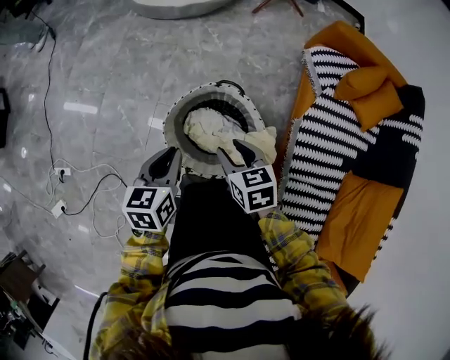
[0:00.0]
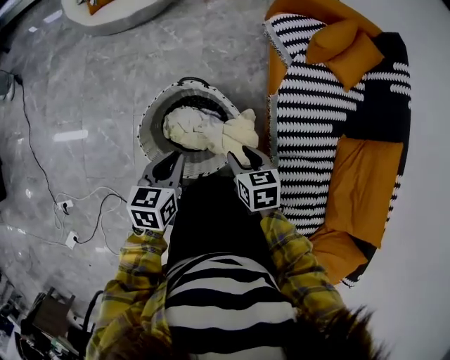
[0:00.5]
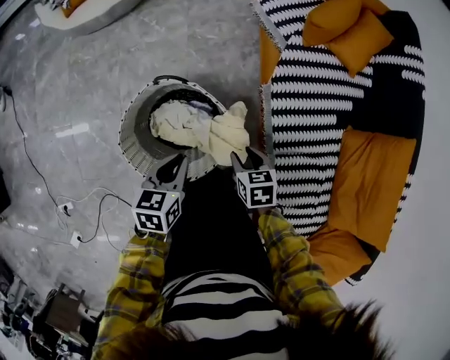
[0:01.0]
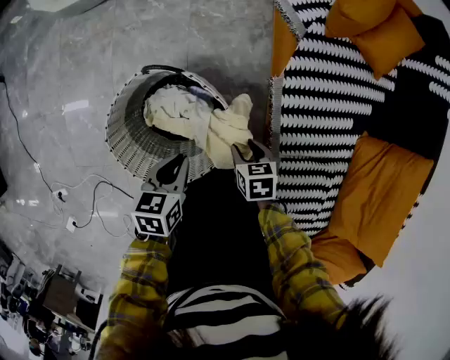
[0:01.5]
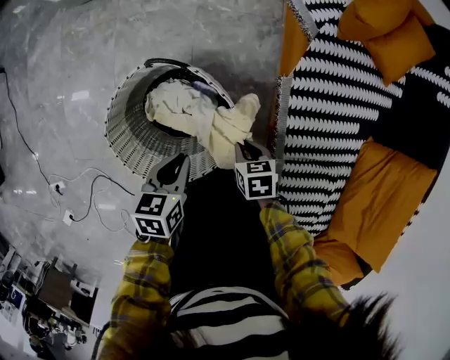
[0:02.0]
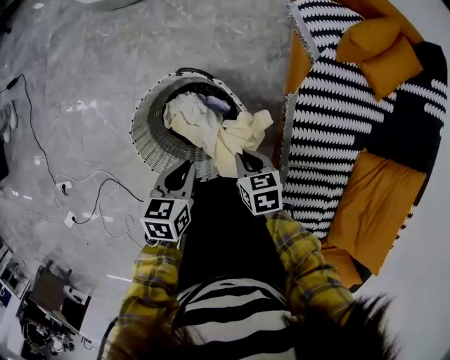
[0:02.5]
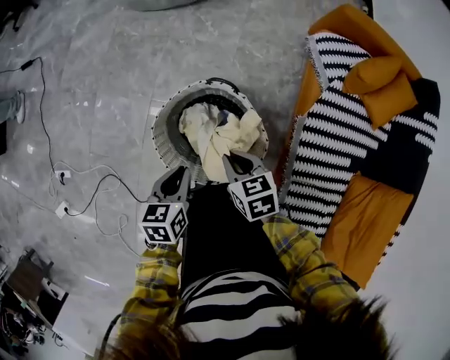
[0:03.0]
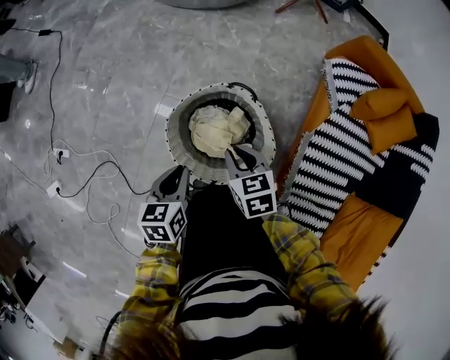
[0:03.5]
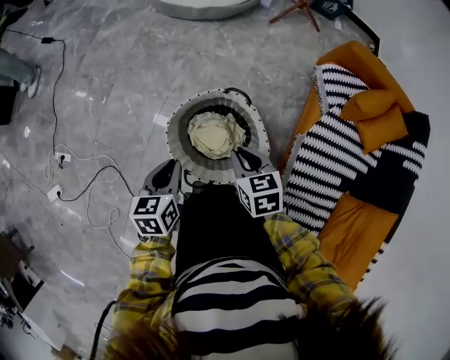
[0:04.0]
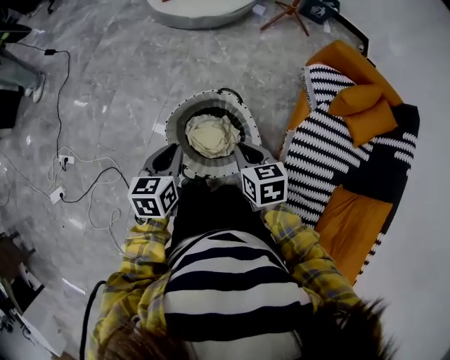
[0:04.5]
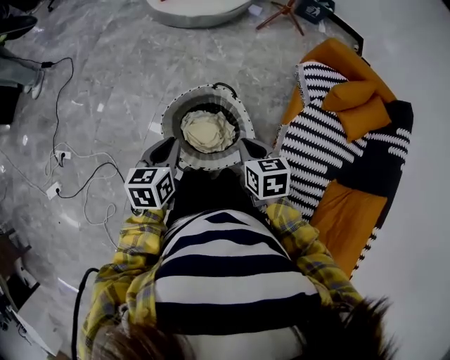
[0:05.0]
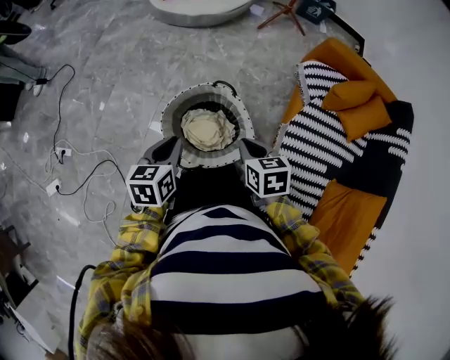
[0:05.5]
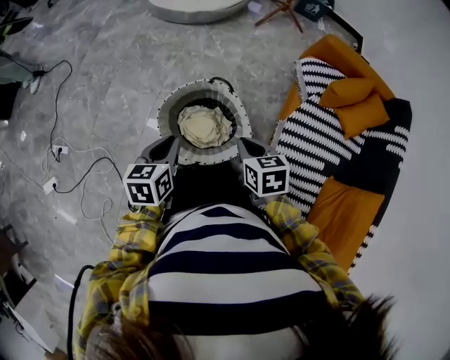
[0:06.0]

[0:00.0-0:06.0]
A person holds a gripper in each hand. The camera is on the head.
0:00.0 to 0:02.0: Both grippers travel together downward and to the right, approximately 30 cm. The right gripper swivels some 30 degrees, and closes. Meanwhile the left gripper rotates roughly 30 degrees.
0:02.0 to 0:04.0: The right gripper shifts some 30 cm upward and to the left, and swivels approximately 30 degrees. The left gripper travels to the left and upward by roughly 25 cm, and changes its angle by approximately 30 degrees.
0:04.0 to 0:06.0: The left gripper moves upward, roughly 5 cm. Meanwhile the right gripper heads to the right, upward and backward, covering about 10 cm.

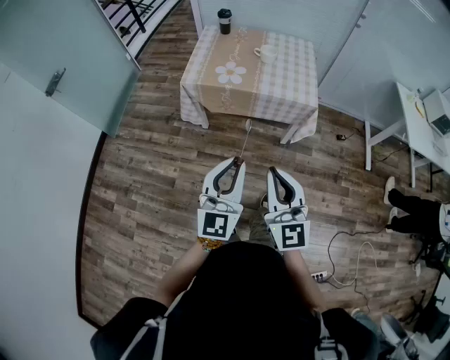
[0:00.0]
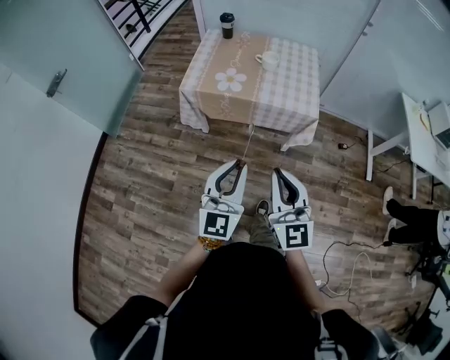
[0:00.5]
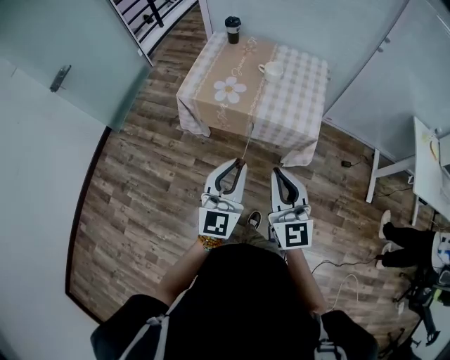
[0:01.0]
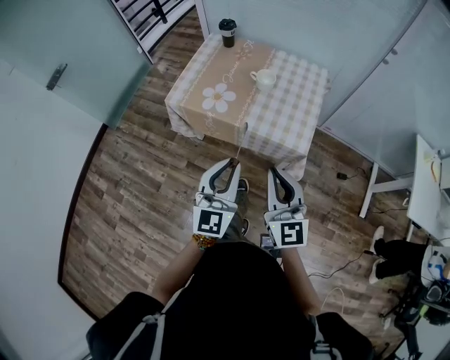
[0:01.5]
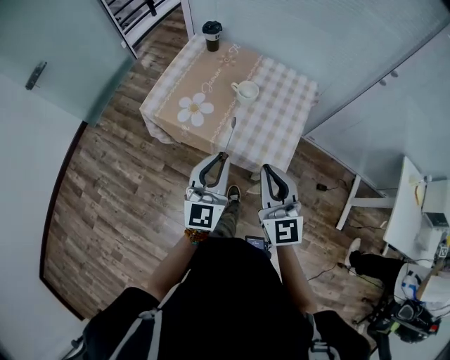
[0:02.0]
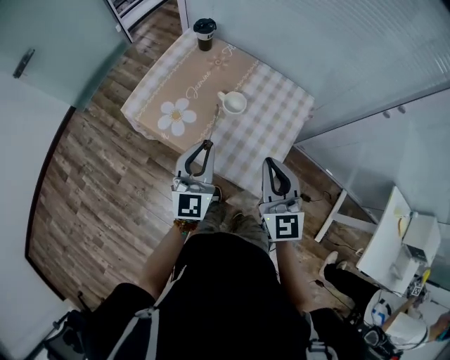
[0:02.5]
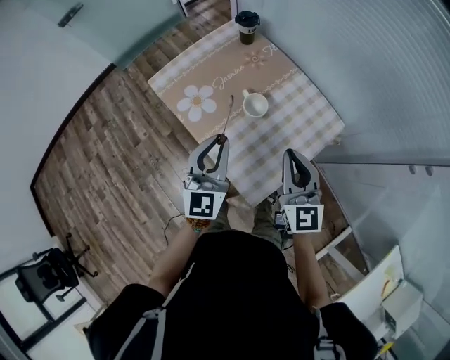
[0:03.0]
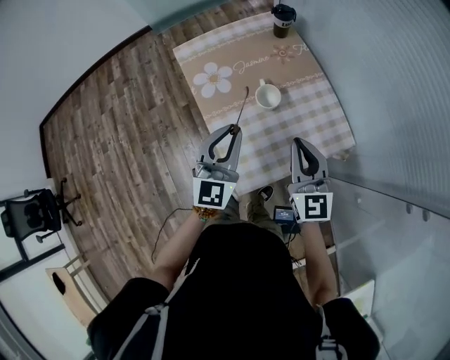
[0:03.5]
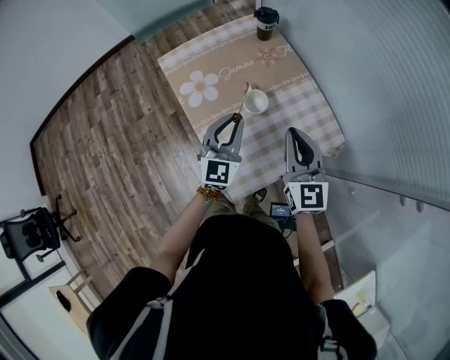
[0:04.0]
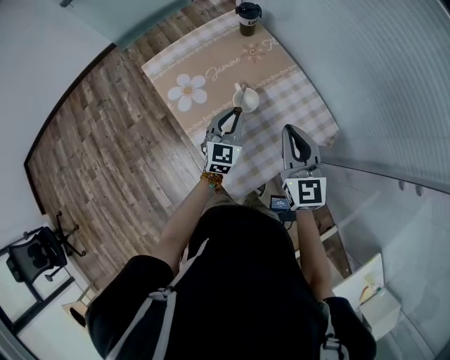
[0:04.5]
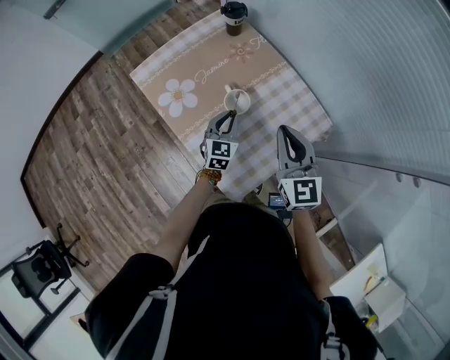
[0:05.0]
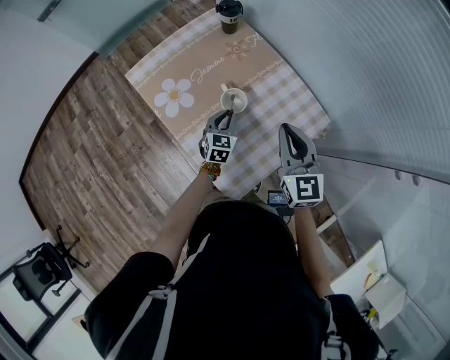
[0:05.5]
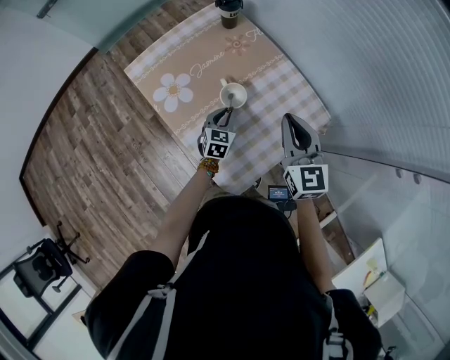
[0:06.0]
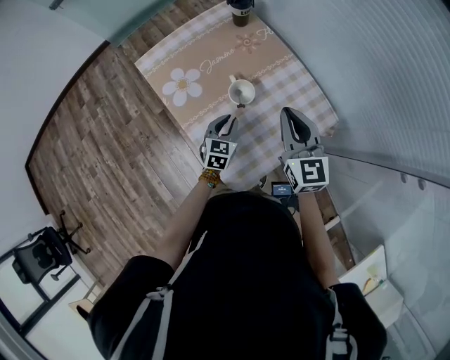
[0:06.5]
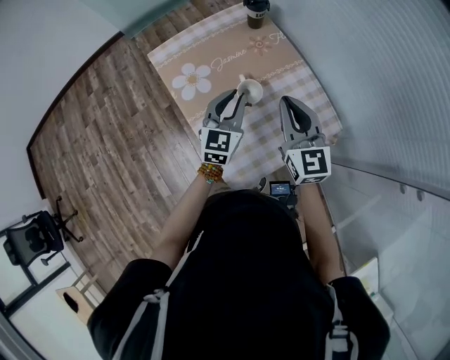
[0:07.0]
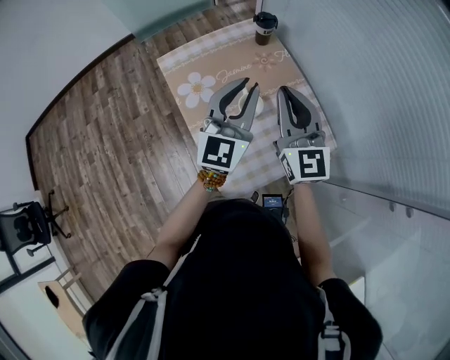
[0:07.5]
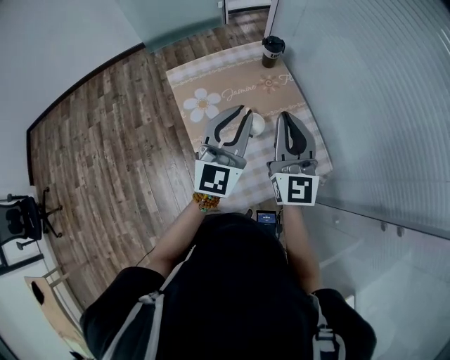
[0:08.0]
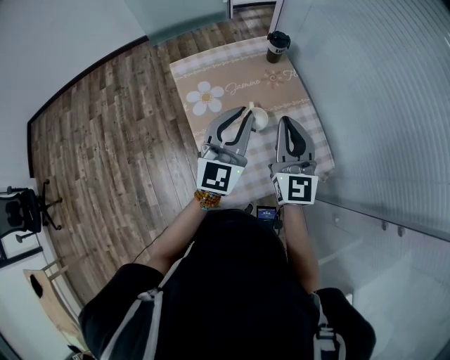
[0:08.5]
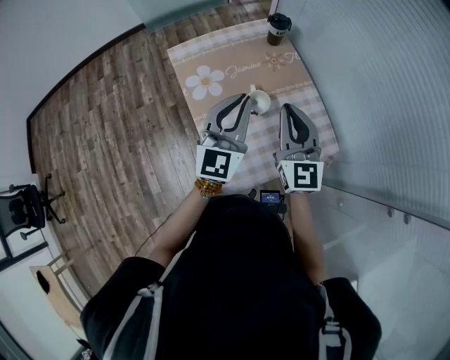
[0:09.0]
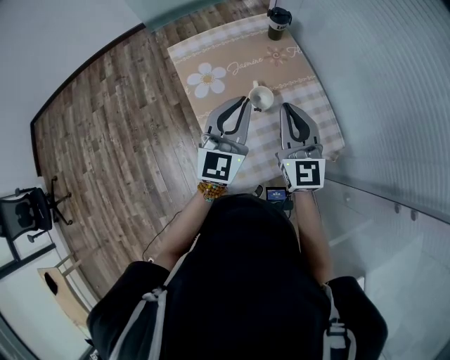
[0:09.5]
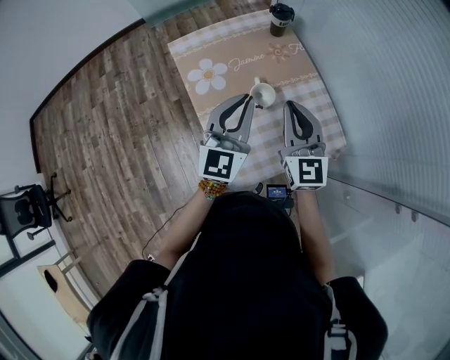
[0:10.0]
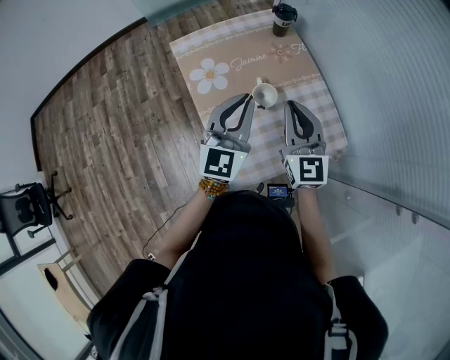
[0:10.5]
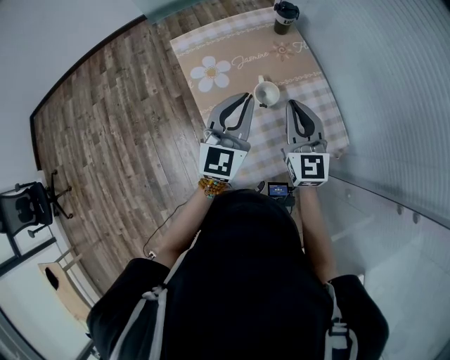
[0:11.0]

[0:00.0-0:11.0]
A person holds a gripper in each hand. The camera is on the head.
0:00.0 to 0:02.0: The pair of grippers is taken forward and to the right, about 40 cm.
0:02.0 to 0:03.5: The right gripper ends up approximately 35 cm from where it was, and turns by about 40 degrees, while the left gripper changes place by about 25 cm, and rotates about 40 degrees.
0:03.5 to 0:05.5: The left gripper is displaced downward and forward by some 30 cm, and turns by about 30 degrees; the right gripper travels forward by about 5 cm.
0:05.5 to 0:07.5: The left gripper heads upward, covering roughly 35 cm, and tips its fingers upward by approximately 40 degrees, while the right gripper shifts approximately 15 cm upward and to the left, and rotates about 20 degrees.
0:07.5 to 0:09.0: The right gripper changes place by approximately 5 cm; the left gripper ends up roughly 5 cm from where it was.
0:09.0 to 0:11.0: The right gripper goes roughly 5 cm downward.

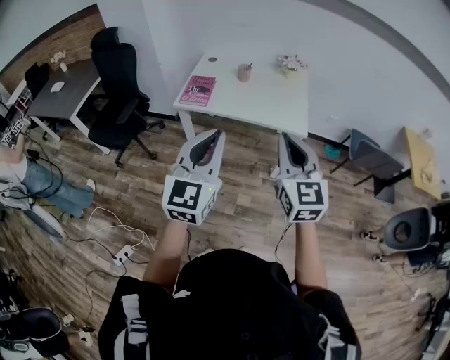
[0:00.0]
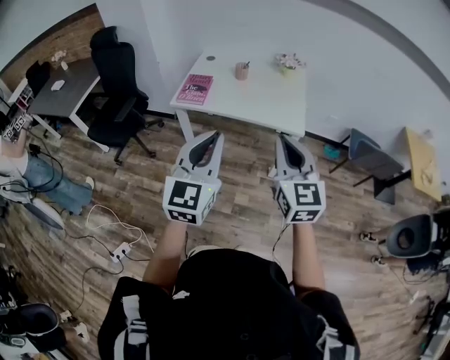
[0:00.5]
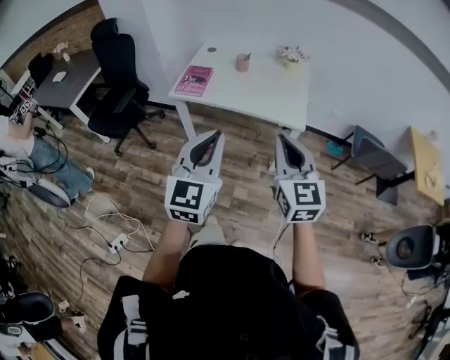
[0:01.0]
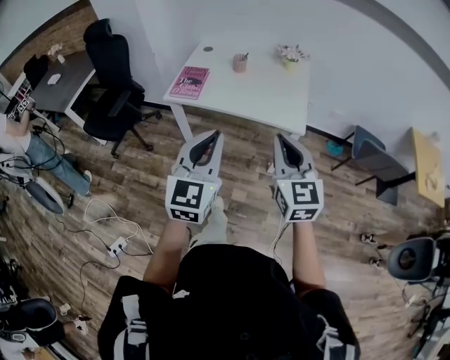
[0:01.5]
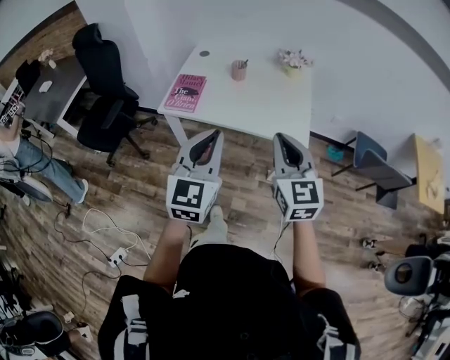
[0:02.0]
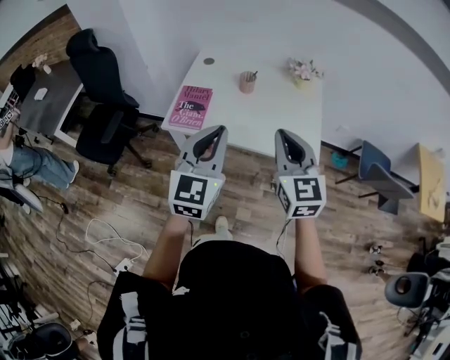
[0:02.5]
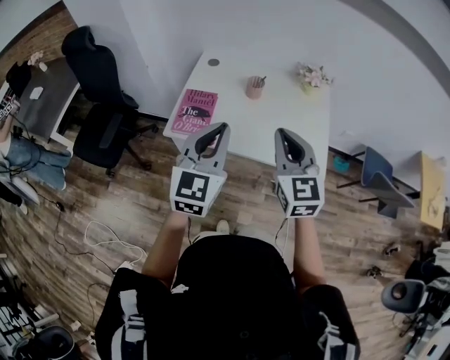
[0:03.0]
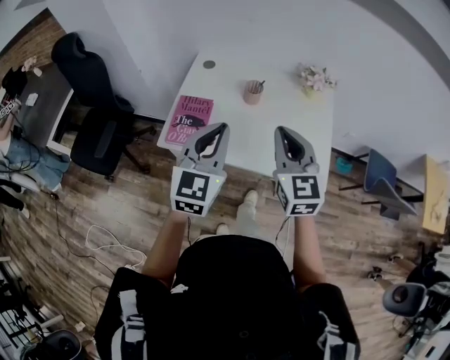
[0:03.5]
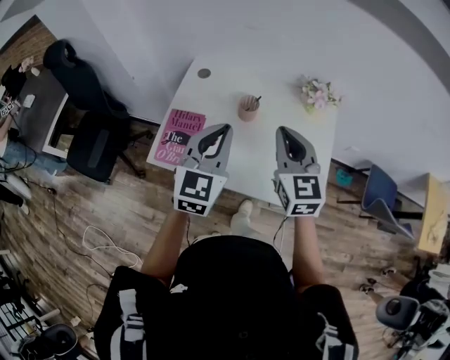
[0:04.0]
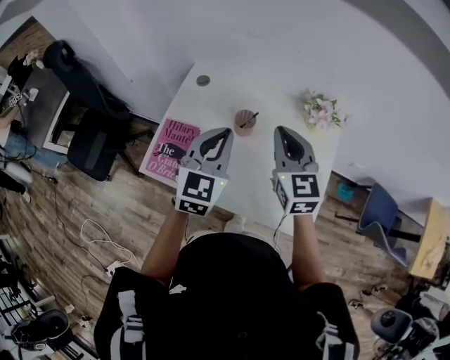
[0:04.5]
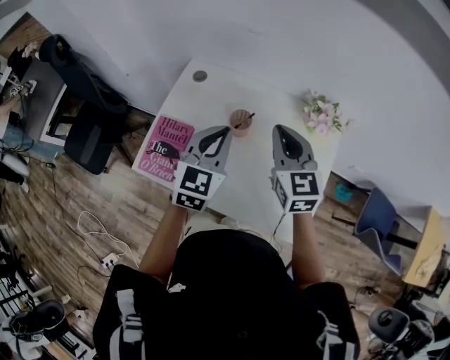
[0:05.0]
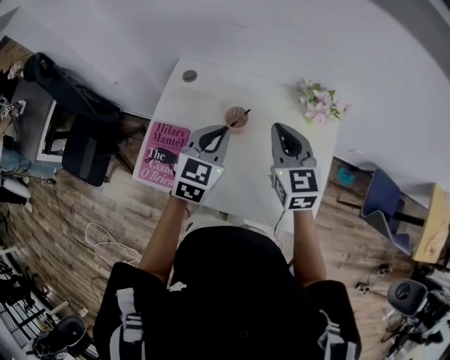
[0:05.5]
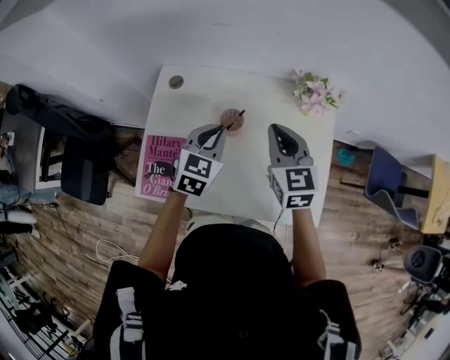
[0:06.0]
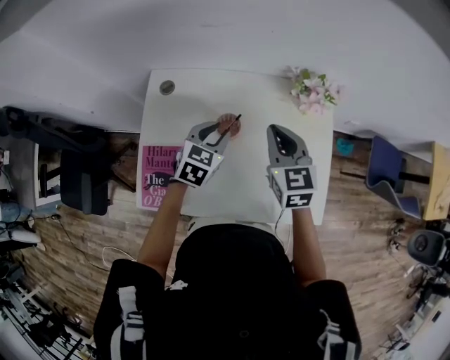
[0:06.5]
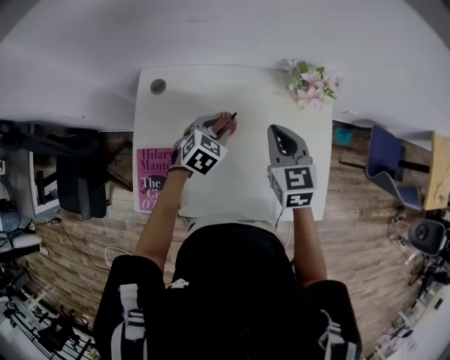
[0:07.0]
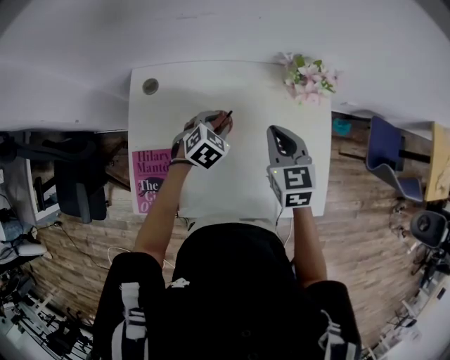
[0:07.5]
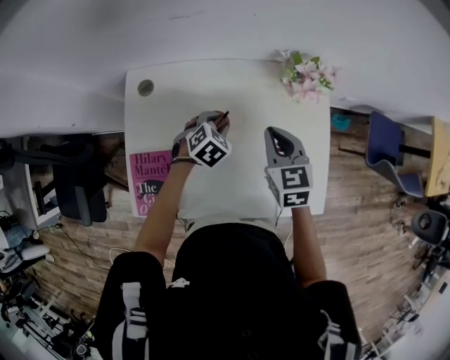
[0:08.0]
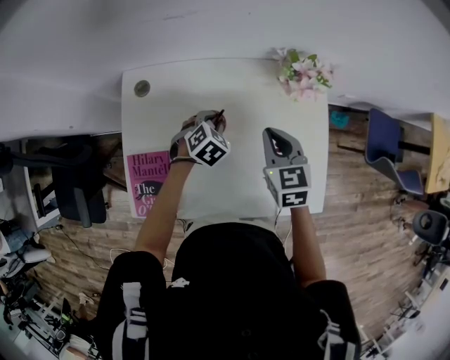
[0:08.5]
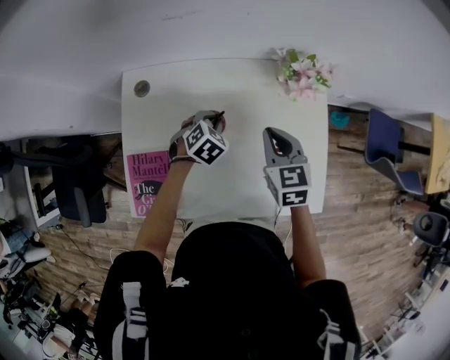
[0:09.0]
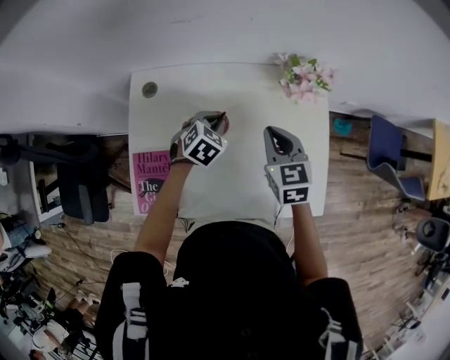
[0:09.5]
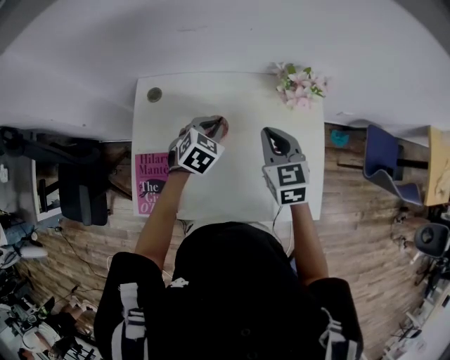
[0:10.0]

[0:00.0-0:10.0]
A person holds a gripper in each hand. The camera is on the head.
0:00.0 to 0:02.0: Both grippers move forward, some 15 cm.
0:02.0 to 0:04.0: The grippers both shift forward by about 35 cm.
0:04.0 to 0:06.0: Both grippers travel together forward and downward, about 20 cm. The left gripper rotates about 30 degrees.
0:06.0 to 0:08.0: The right gripper travels downward by about 10 cm. Meanwhile the left gripper is displaced downward and forward by about 20 cm, changes its angle by approximately 40 degrees, and opens up.
0:08.0 to 0:10.0: The left gripper shifts roughly 10 cm upward.
